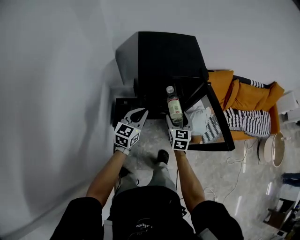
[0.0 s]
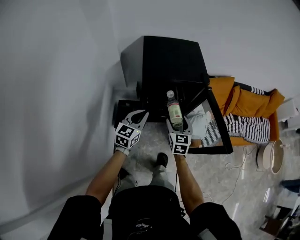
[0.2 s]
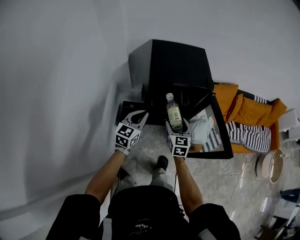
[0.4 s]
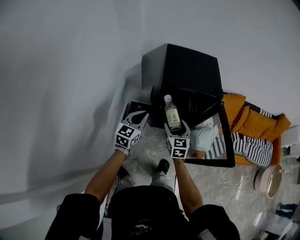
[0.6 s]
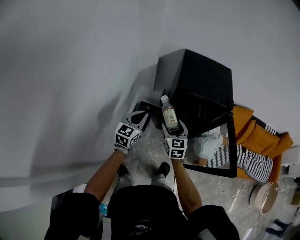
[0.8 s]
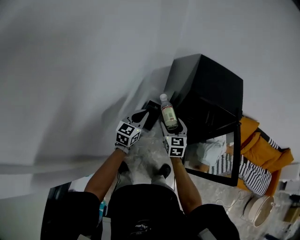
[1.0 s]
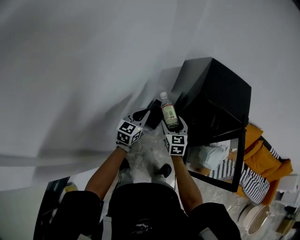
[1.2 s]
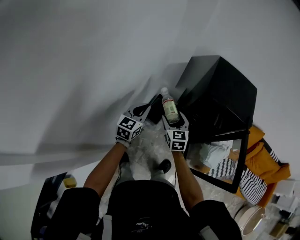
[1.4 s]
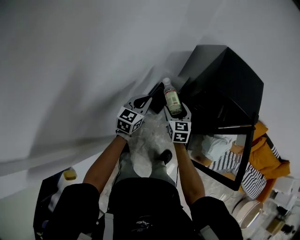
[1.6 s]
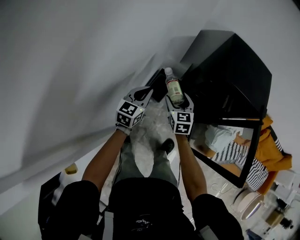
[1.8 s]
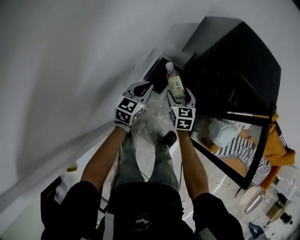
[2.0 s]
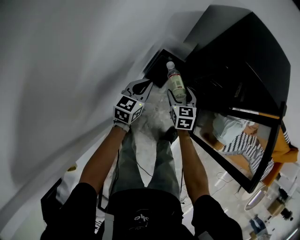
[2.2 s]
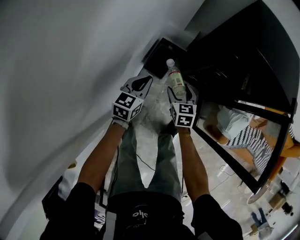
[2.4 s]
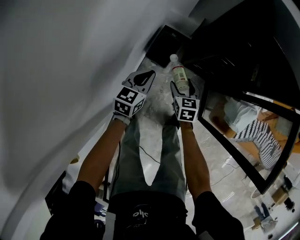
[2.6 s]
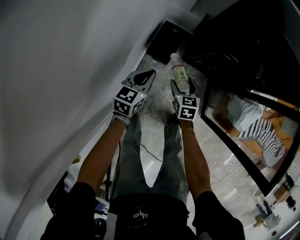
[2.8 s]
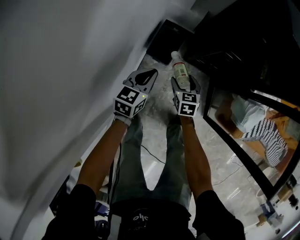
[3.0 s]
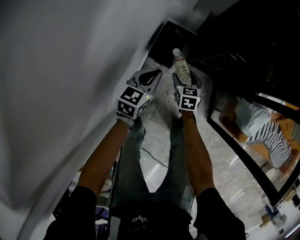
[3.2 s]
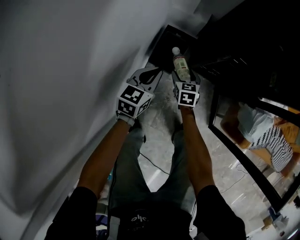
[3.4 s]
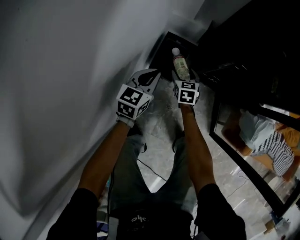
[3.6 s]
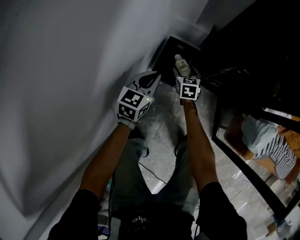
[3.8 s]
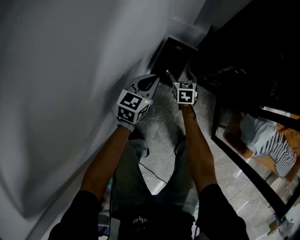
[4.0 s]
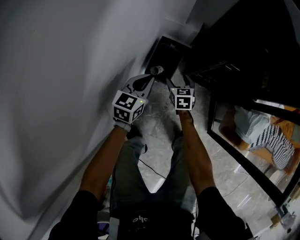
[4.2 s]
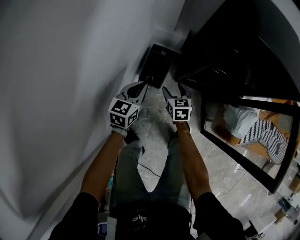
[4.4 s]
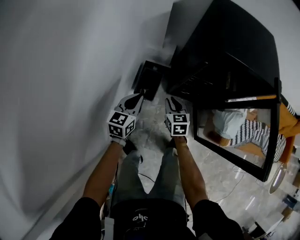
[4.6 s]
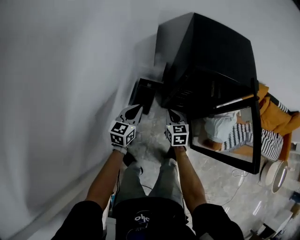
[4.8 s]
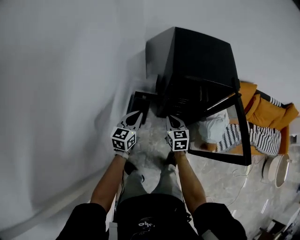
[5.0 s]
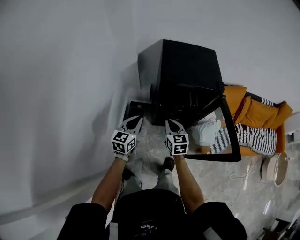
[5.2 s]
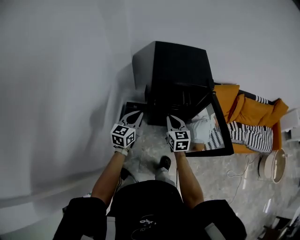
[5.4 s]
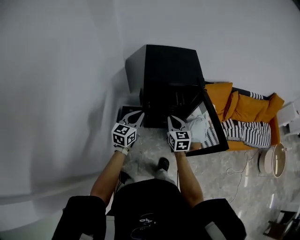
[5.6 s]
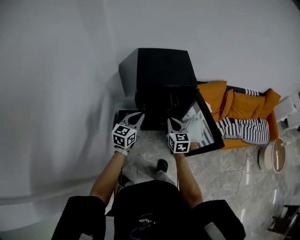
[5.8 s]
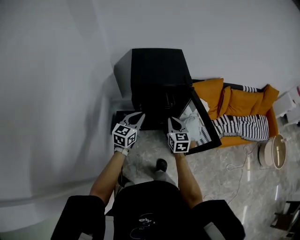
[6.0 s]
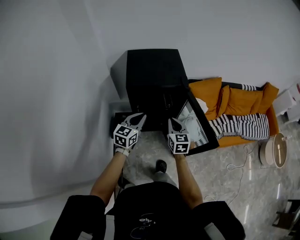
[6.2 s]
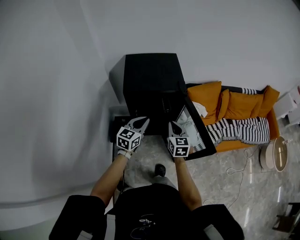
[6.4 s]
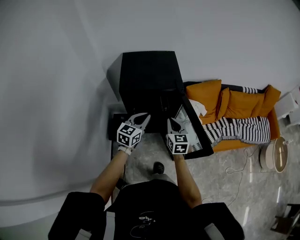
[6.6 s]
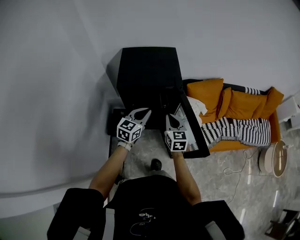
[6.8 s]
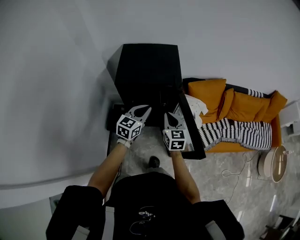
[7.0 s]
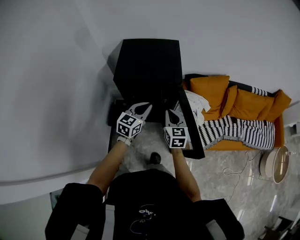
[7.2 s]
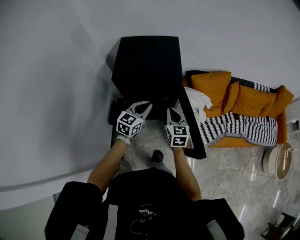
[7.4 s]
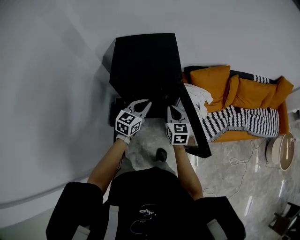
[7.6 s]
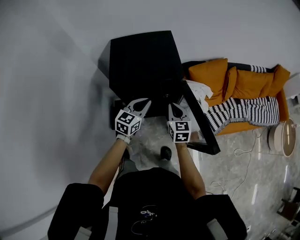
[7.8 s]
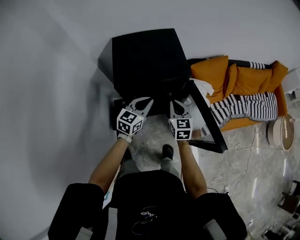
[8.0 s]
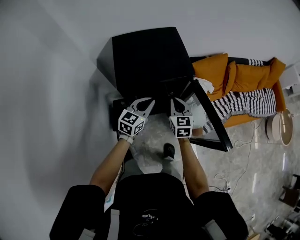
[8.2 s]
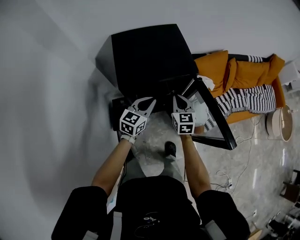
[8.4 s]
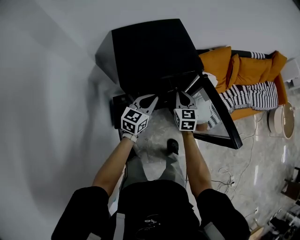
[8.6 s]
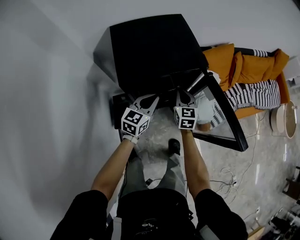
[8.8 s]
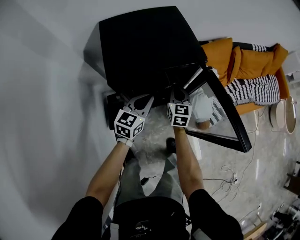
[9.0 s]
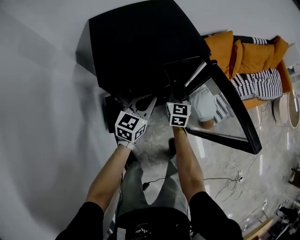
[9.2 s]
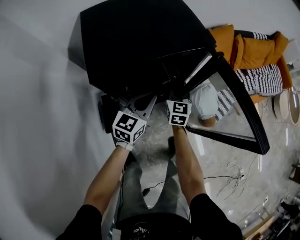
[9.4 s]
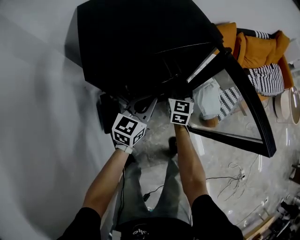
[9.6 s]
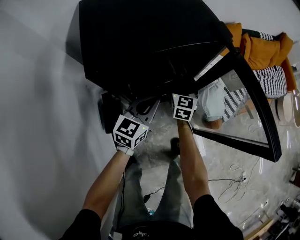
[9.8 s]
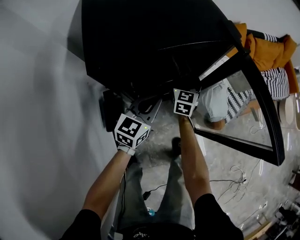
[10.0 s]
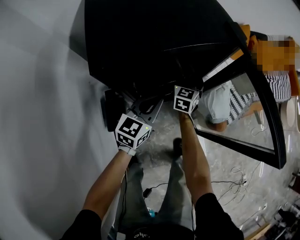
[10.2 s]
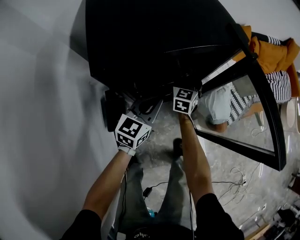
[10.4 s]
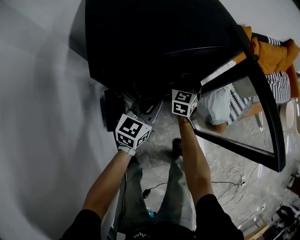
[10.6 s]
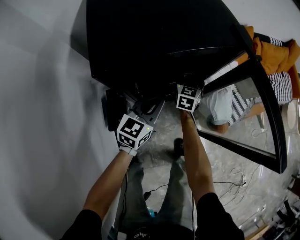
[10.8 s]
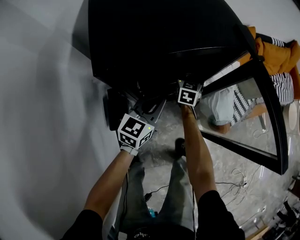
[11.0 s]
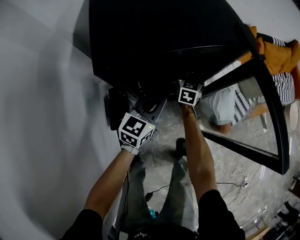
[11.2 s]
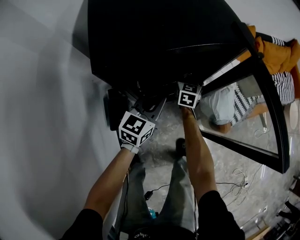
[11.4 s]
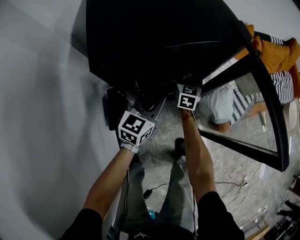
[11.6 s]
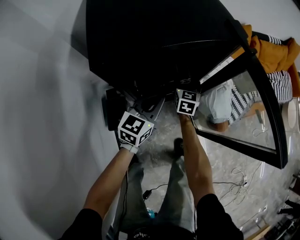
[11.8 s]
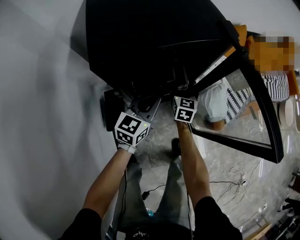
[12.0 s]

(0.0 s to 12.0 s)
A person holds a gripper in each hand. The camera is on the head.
0.0 s - 1.6 s: The left gripper shifts by approximately 25 cm, and turns by about 30 degrees; the right gripper moves some 30 cm, and turns by about 40 degrees.
1.6 s - 3.0 s: Both grippers travel together downward, roughly 35 cm. The right gripper rotates roughly 20 degrees.
3.0 s - 4.4 s: Both grippers travel together forward, approximately 5 cm. The right gripper reaches about 10 cm downward, then returns.
4.4 s - 6.0 s: The two grippers go some 50 cm upward and to the right. The right gripper turns by about 30 degrees, and closes its fingers; the left gripper changes its angle by some 20 degrees.
6.0 s - 7.6 s: The right gripper shifts roughly 15 cm forward and to the right, while the left gripper heads to the right and forward, covering about 15 cm.
7.6 s - 9.0 s: The right gripper travels downward, to the left and forward by about 15 cm, and turns by approximately 20 degrees, while the left gripper moves downward and to the left, some 15 cm.
9.0 s - 10.4 s: The left gripper shifts approximately 15 cm downward; the right gripper moves downward and forward, about 20 cm, and opens.
10.4 s - 12.0 s: The right gripper shifts by some 5 cm.

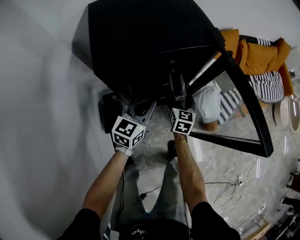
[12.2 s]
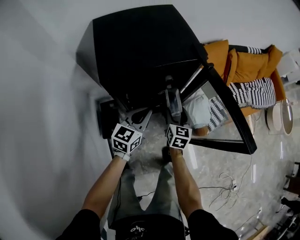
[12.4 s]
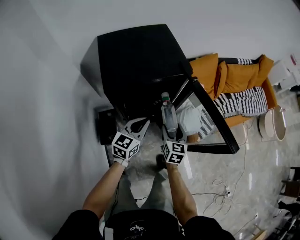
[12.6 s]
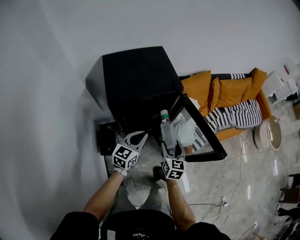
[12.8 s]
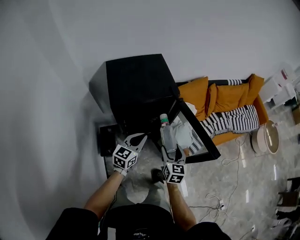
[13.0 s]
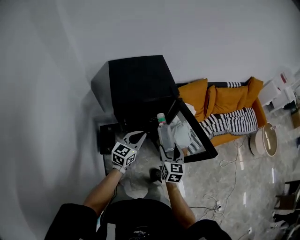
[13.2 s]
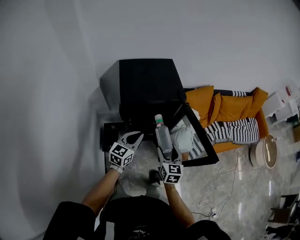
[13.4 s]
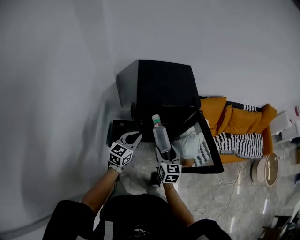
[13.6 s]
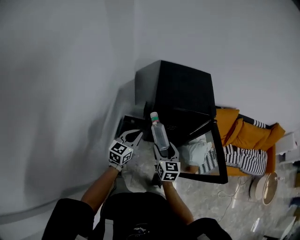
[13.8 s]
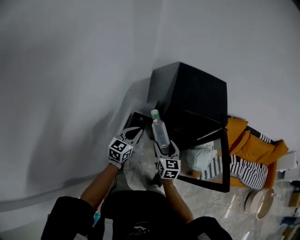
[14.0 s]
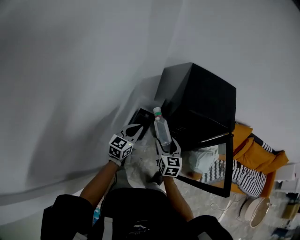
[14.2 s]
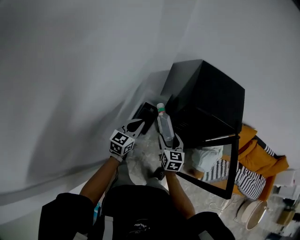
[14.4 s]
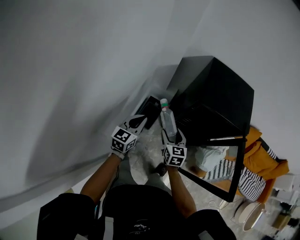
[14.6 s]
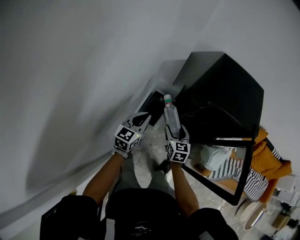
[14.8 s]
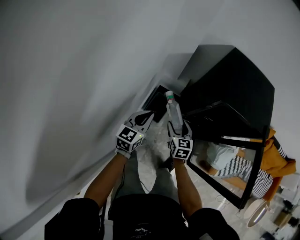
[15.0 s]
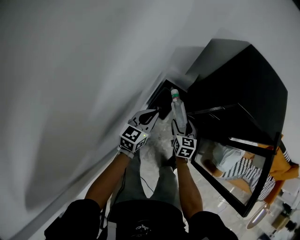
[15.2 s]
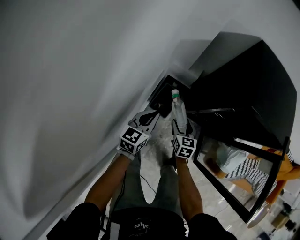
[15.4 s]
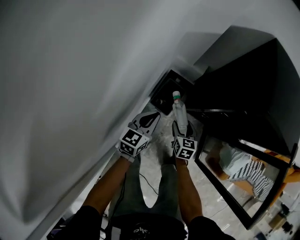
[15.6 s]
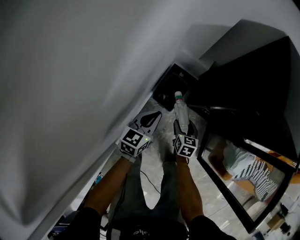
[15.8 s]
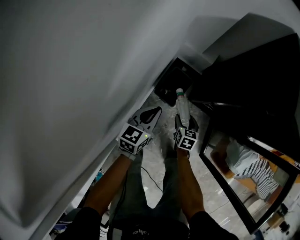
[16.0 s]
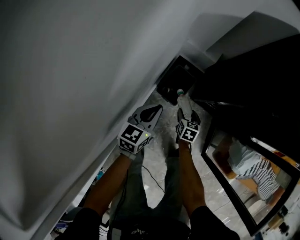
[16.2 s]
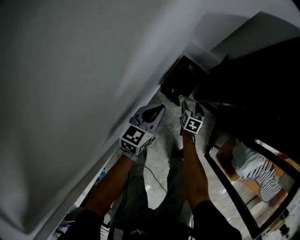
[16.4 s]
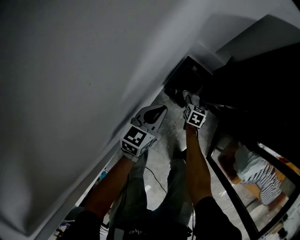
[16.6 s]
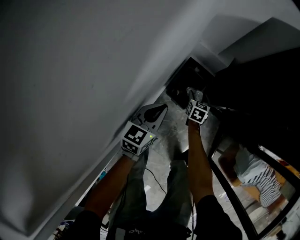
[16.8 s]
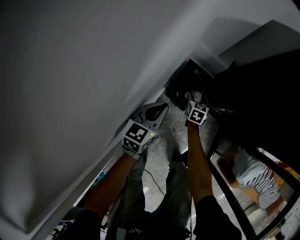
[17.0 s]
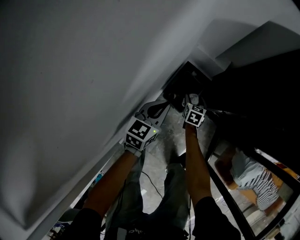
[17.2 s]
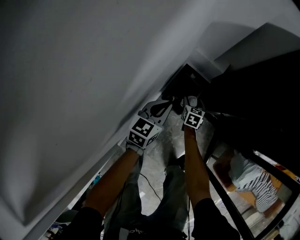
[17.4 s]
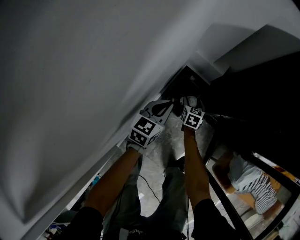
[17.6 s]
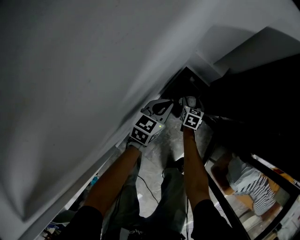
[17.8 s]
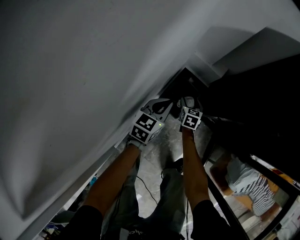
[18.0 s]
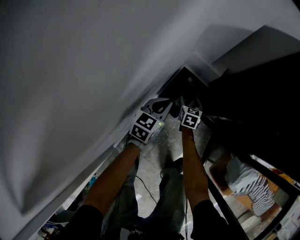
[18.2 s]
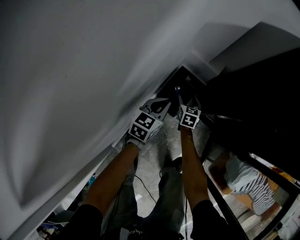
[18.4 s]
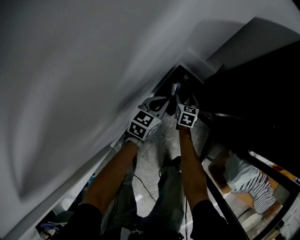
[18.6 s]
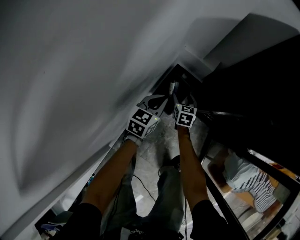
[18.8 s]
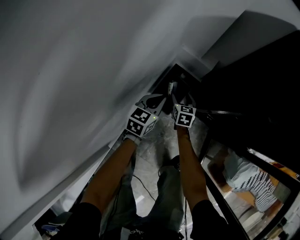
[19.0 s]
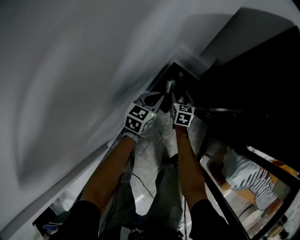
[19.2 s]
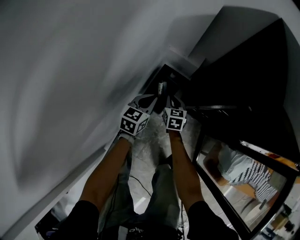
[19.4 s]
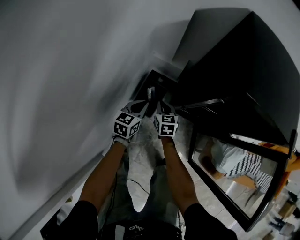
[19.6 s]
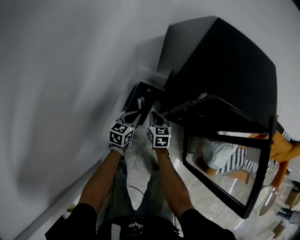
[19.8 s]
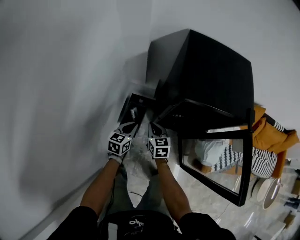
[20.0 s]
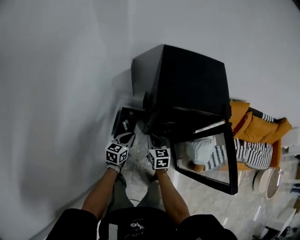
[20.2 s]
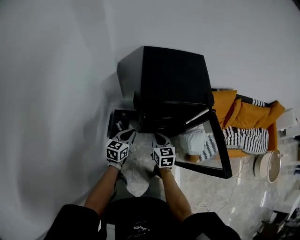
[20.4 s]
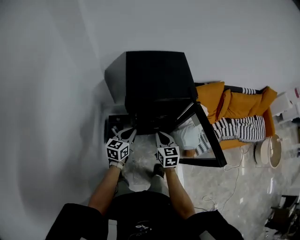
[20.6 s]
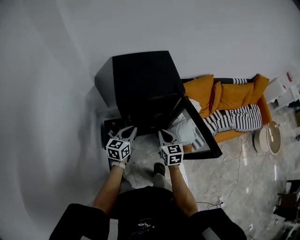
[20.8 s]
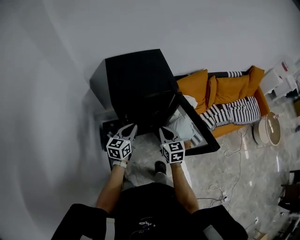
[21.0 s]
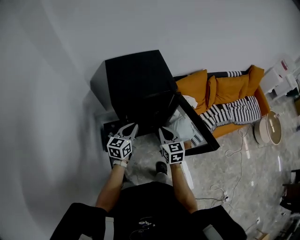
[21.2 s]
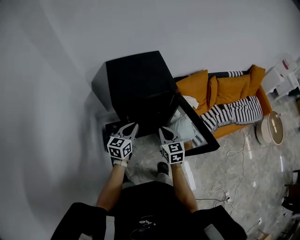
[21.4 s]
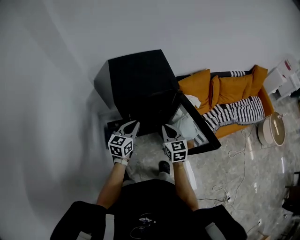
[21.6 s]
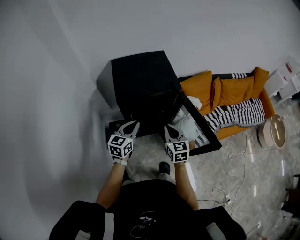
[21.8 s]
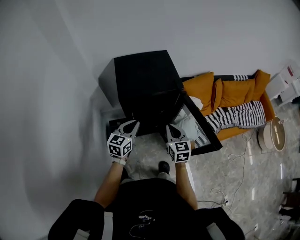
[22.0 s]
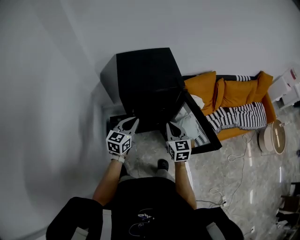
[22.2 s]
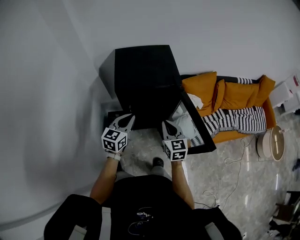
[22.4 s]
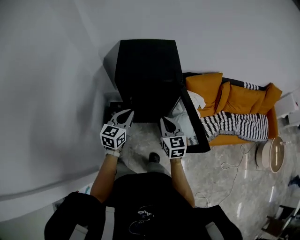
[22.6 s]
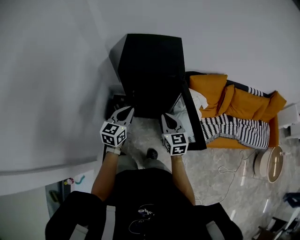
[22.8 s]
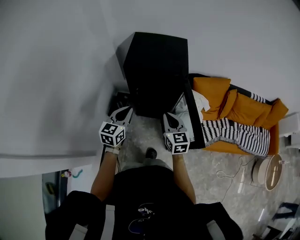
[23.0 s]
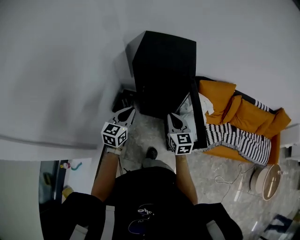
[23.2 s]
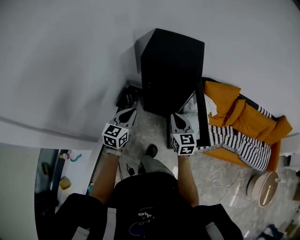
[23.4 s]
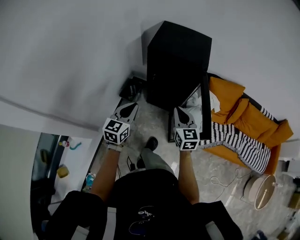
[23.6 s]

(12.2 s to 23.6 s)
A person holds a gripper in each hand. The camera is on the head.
12.2 s - 13.6 s: Both grippers move upward and backward, about 25 cm. The right gripper turns by approximately 20 degrees.
13.6 s - 15.0 s: The right gripper shifts by roughly 30 cm, and rotates about 30 degrees; the left gripper ends up roughly 25 cm from where it was, and rotates approximately 30 degrees.
15.0 s - 16.4 s: The right gripper heads downward, covering about 35 cm, and changes its angle by roughly 20 degrees; the left gripper travels downward by about 20 cm.
16.4 s - 17.8 s: The grippers both shift forward by some 5 cm.
17.8 s - 19.4 s: The right gripper goes approximately 5 cm upward, and closes its fingers, while the left gripper travels to the right by some 5 cm.
19.4 s - 20.8 s: Both grippers travel together upward, some 40 cm. The right gripper turns by about 30 degrees; the left gripper changes its angle by roughly 30 degrees.
20.8 s - 22.2 s: Both grippers move upward, about 5 cm.
22.2 s - 23.6 s: The right gripper ends up approximately 10 cm from where it was, and rotates about 30 degrees; the left gripper ends up roughly 20 cm from where it was, and swivels some 30 degrees.
